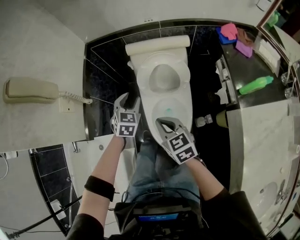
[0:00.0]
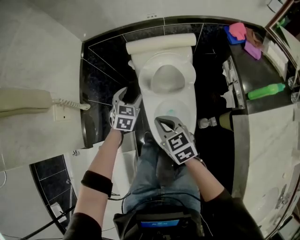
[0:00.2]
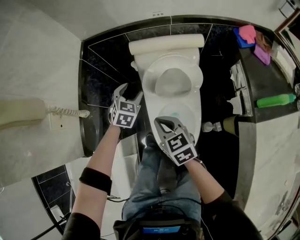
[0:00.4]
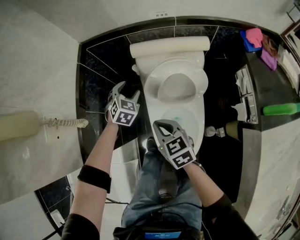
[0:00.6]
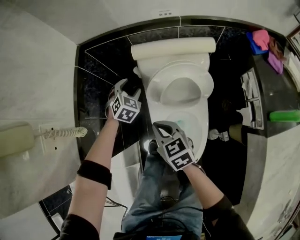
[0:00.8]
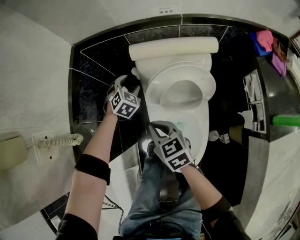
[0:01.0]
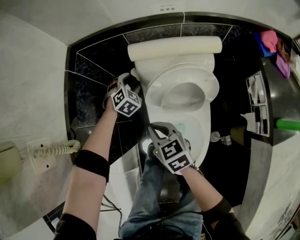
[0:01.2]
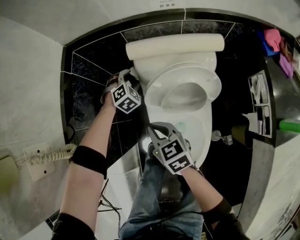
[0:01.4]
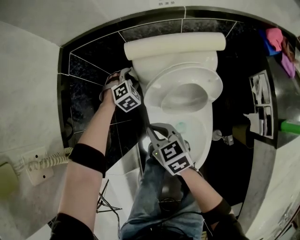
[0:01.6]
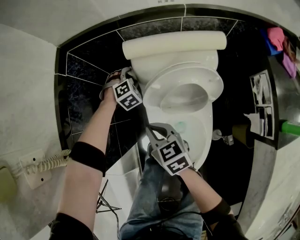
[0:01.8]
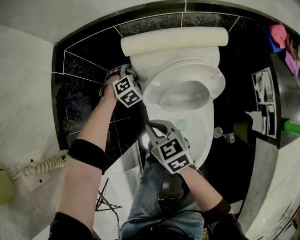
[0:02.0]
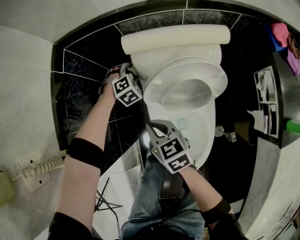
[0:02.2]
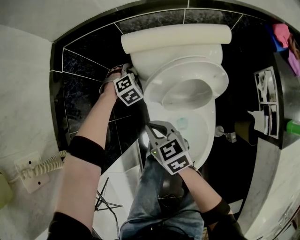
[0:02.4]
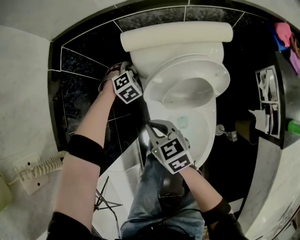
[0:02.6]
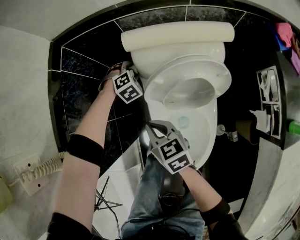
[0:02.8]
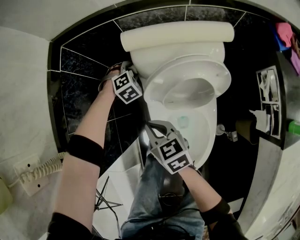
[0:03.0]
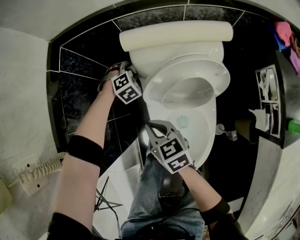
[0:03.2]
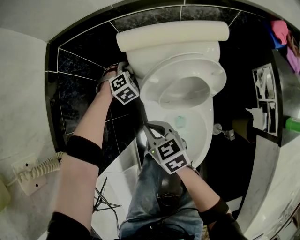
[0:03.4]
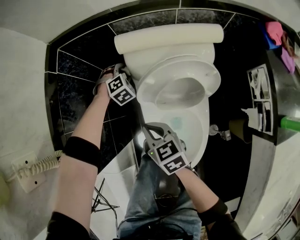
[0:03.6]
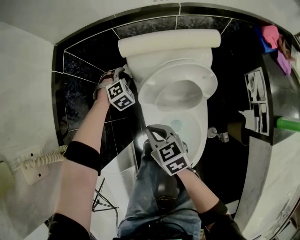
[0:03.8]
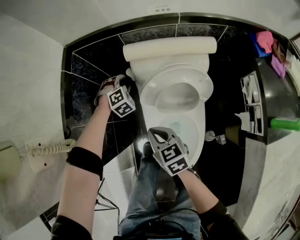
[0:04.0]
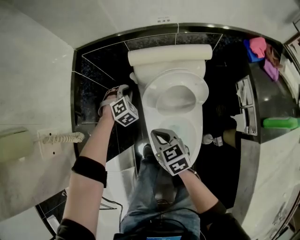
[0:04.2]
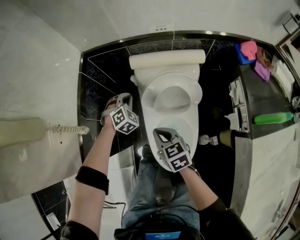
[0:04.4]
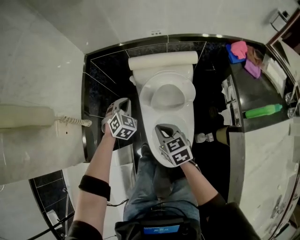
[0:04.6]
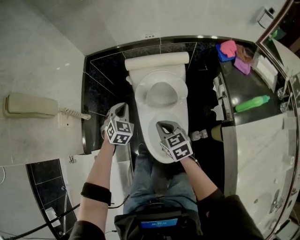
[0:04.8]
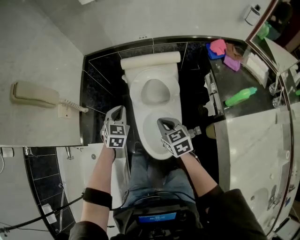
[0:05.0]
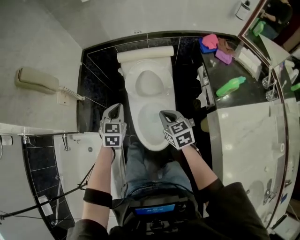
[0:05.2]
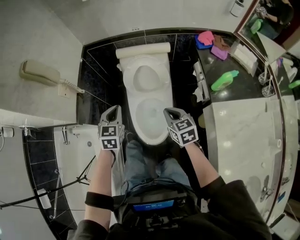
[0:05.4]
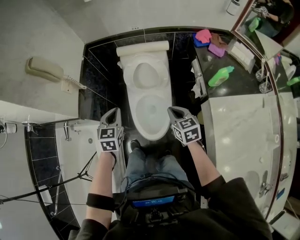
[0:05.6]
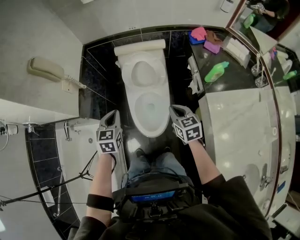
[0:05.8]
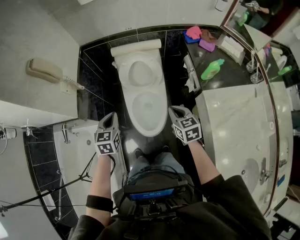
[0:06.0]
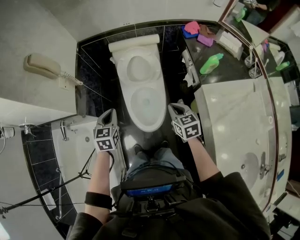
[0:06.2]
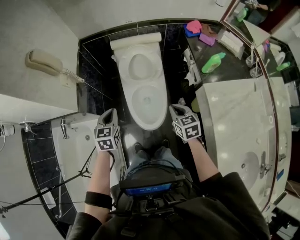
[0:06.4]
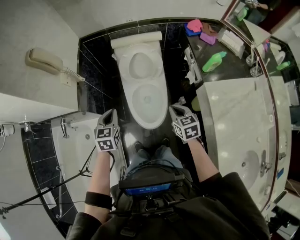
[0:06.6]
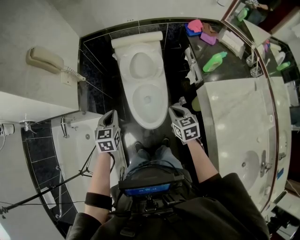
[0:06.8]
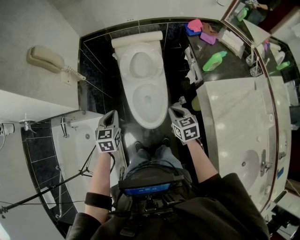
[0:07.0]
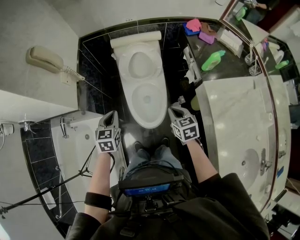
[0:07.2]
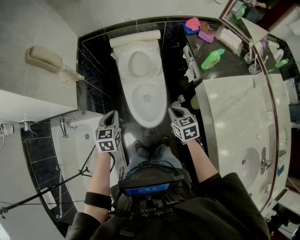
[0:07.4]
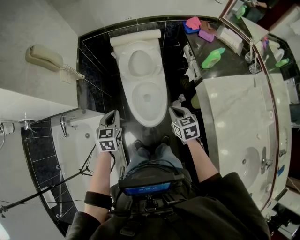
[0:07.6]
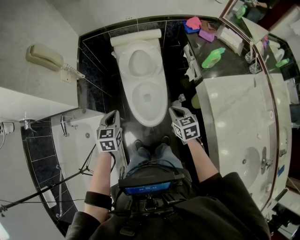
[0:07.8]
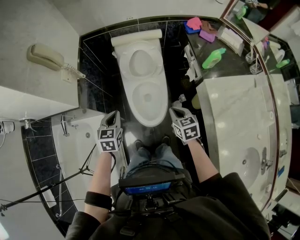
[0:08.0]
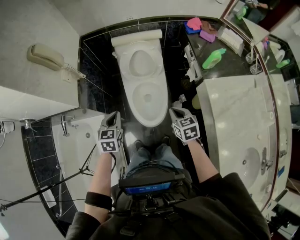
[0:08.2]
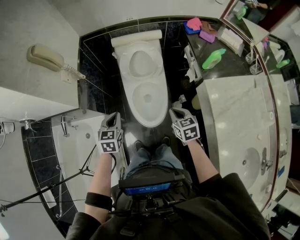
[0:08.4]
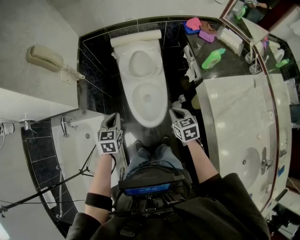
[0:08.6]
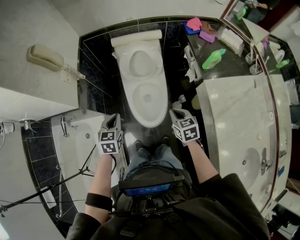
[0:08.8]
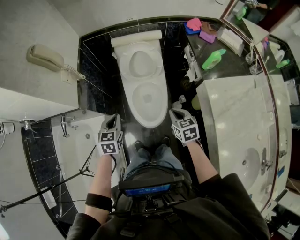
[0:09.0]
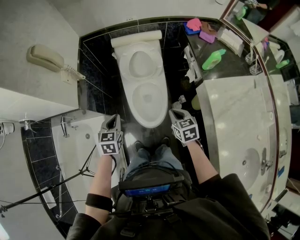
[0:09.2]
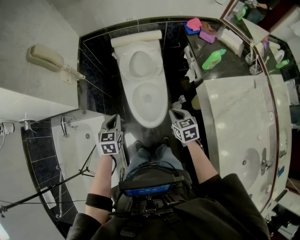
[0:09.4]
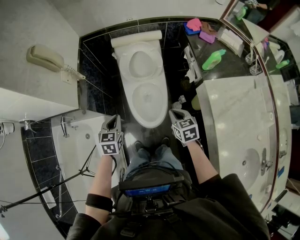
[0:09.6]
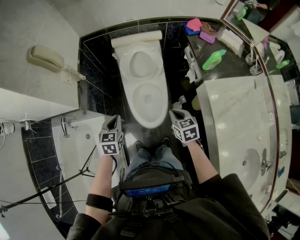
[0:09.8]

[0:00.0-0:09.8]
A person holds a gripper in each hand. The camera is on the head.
0:00.0 to 0:01.4: Both grippers travel together forward and downward, approximately 30 cm. The left gripper turns by approximately 40 degrees.
0:01.4 to 0:02.8: The left gripper moves downward, approximately 5 cm.
0:02.8 to 0:04.2: Both grippers move upward and backward, approximately 10 cm. The left gripper closes.
0:04.2 to 0:05.6: The left gripper heads backward and upward, covering some 50 cm, and twists some 60 degrees counterclockwise, seen from behind. Meanwhile the right gripper goes some 35 cm backward, upward and to the right.
0:05.6 to 0:07.0: The right gripper is displaced backward by some 10 cm. Meanwhile the left gripper moves backward and to the left, about 10 cm.
0:07.0 to 0:08.4: The grippers move only a little.
0:08.4 to 0:09.8: Both grippers stay put.

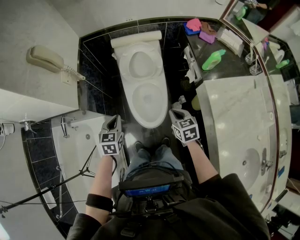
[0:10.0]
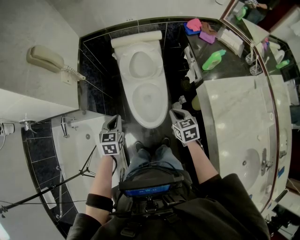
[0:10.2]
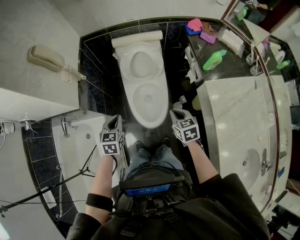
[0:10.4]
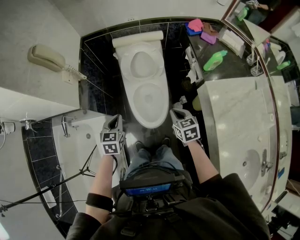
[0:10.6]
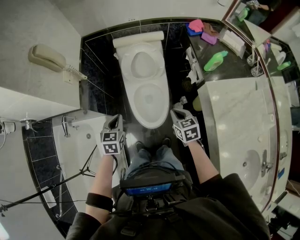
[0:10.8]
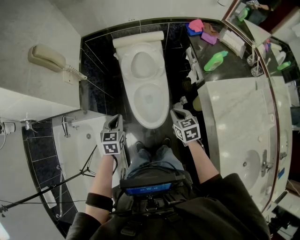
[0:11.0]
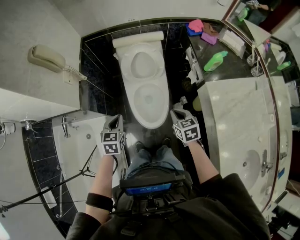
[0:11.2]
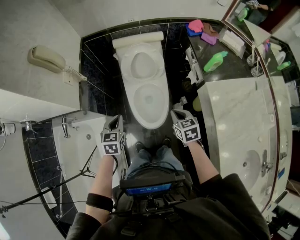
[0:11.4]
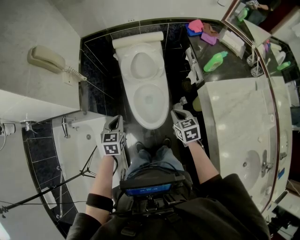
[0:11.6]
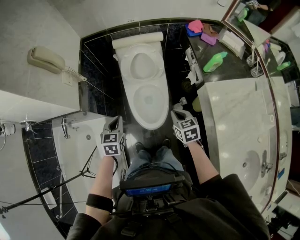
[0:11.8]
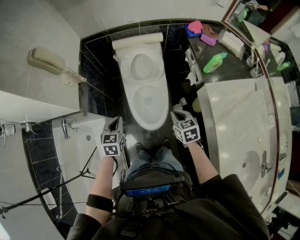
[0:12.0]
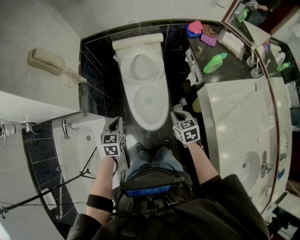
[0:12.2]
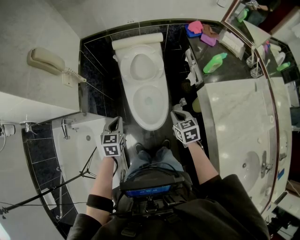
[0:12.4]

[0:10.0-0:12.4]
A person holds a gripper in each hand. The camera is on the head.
0:10.0 to 0:12.4: The two grippers keep their place.

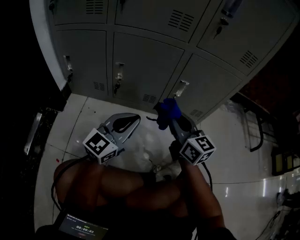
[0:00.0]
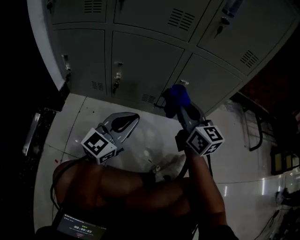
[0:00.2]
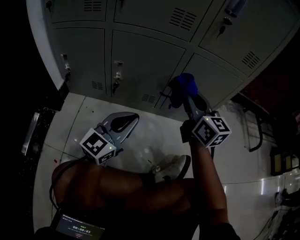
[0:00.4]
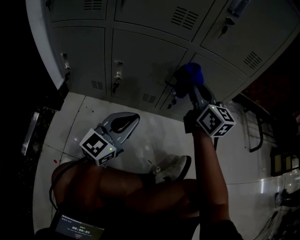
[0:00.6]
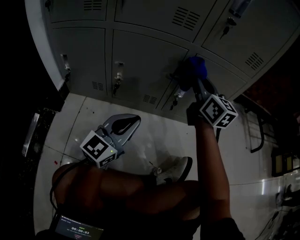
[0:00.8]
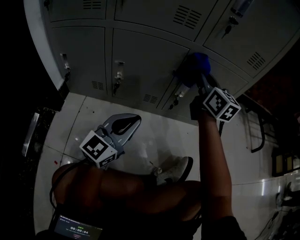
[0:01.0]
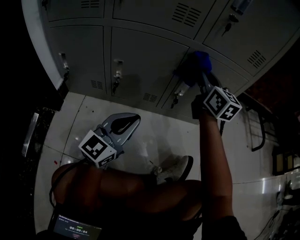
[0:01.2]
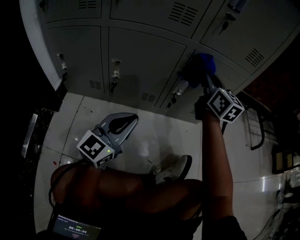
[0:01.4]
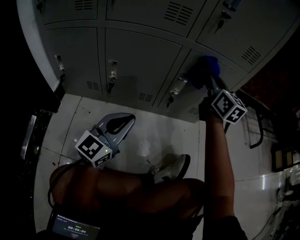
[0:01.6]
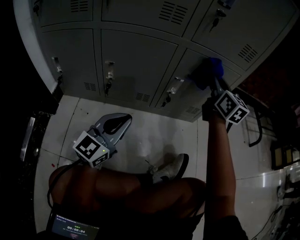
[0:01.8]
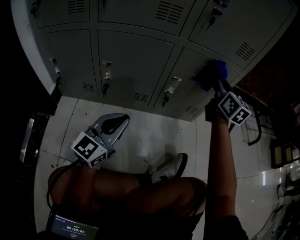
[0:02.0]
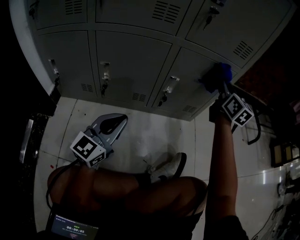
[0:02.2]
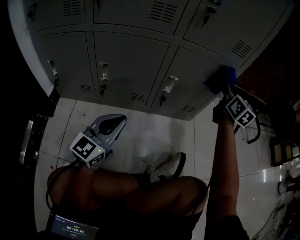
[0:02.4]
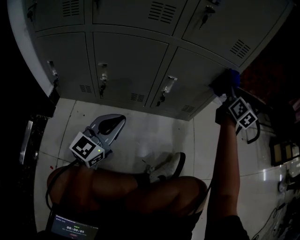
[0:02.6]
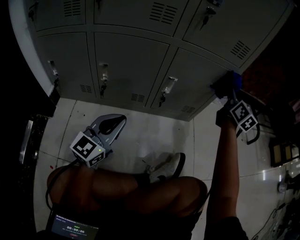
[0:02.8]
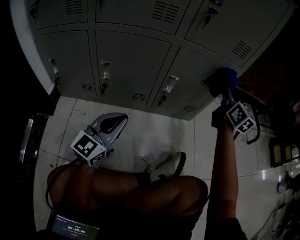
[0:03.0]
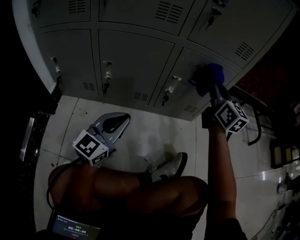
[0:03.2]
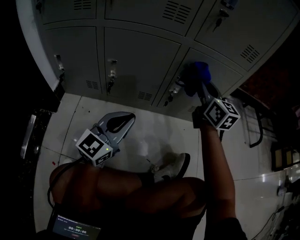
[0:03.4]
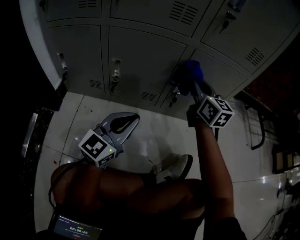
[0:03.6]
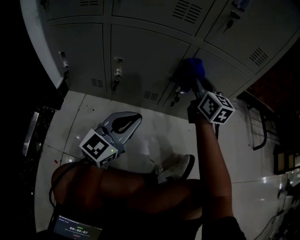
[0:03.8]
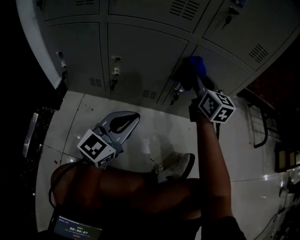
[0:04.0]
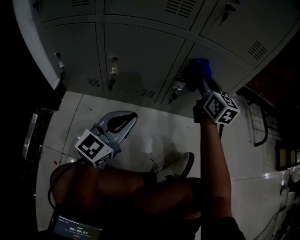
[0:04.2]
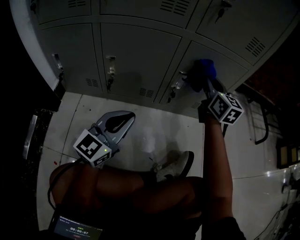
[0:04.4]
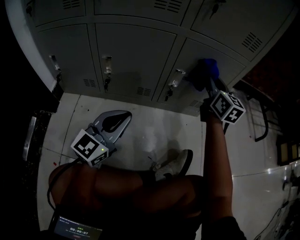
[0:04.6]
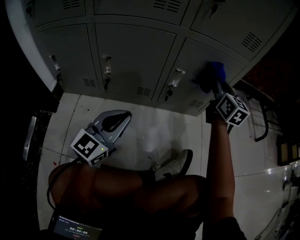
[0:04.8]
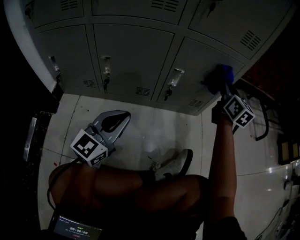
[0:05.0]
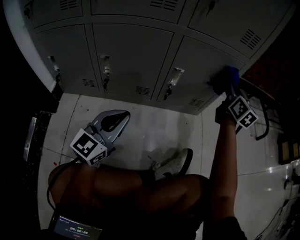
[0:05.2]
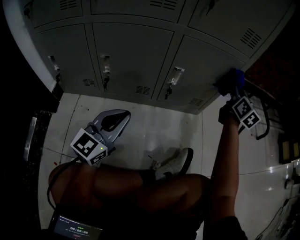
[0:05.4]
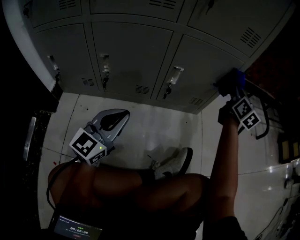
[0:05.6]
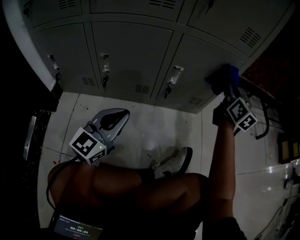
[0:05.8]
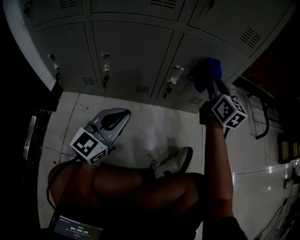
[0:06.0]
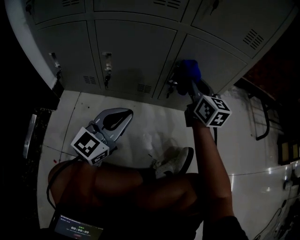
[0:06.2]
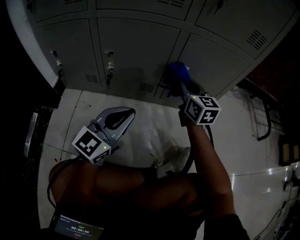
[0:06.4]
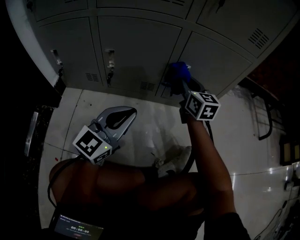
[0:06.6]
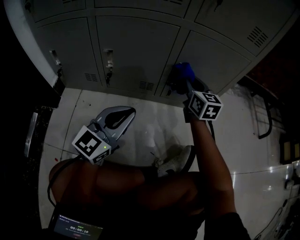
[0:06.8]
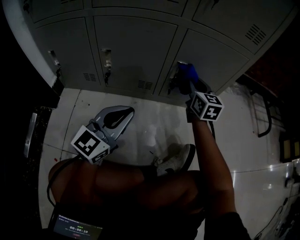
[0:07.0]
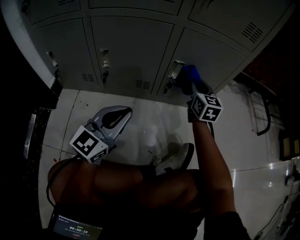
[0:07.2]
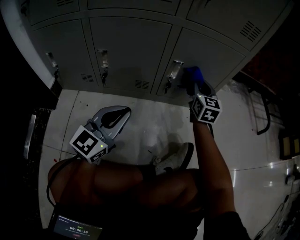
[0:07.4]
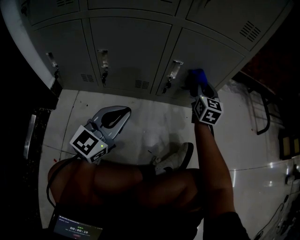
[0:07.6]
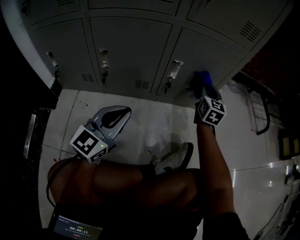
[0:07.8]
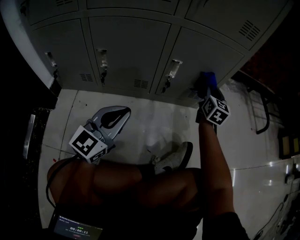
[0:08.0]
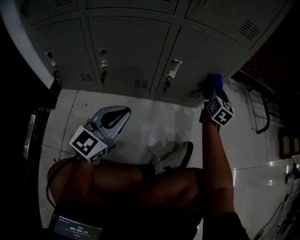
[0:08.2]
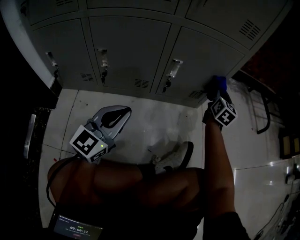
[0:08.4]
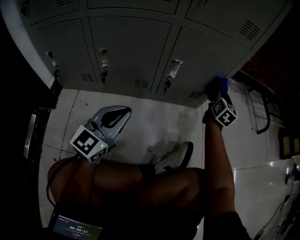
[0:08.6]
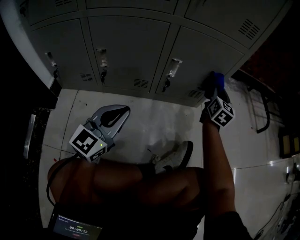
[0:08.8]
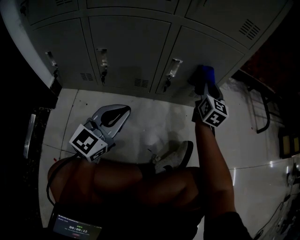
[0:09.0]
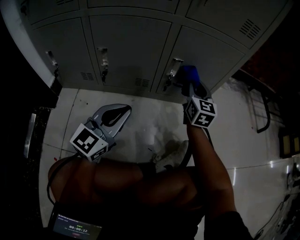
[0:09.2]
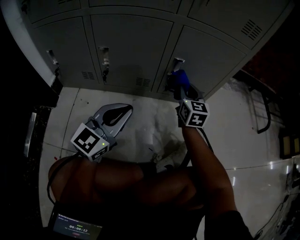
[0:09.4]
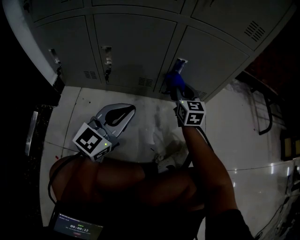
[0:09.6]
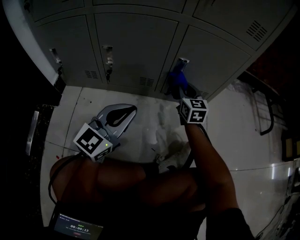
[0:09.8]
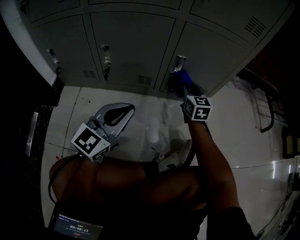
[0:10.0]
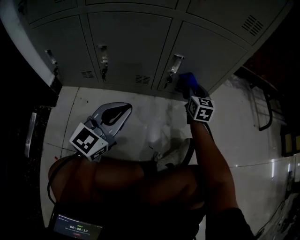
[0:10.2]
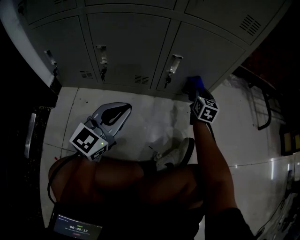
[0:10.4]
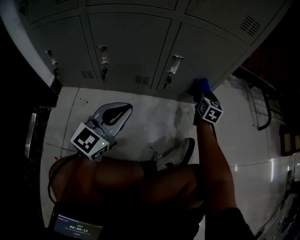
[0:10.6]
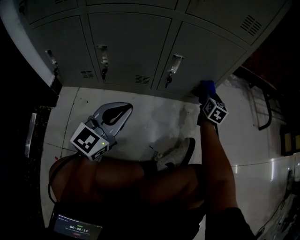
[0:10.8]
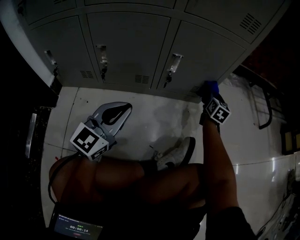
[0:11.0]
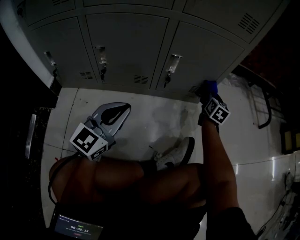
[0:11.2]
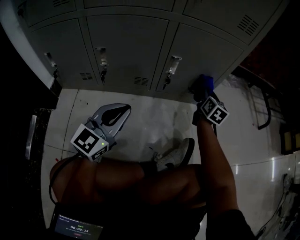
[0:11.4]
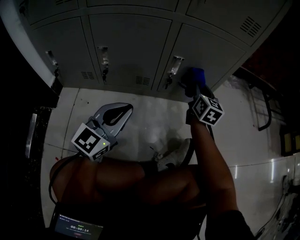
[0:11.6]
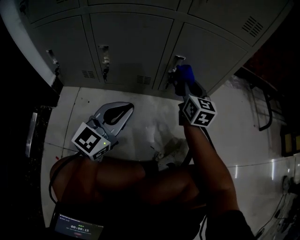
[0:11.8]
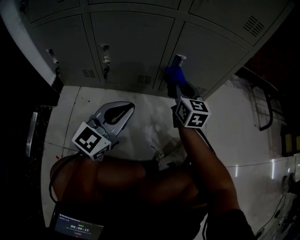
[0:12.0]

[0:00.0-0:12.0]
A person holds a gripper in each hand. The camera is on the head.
0:00.0 to 0:01.6: The right gripper moves forward, upward and to the right, roughly 20 cm, and rotates some 20 degrees.
0:01.6 to 0:03.0: The right gripper is displaced to the right by some 15 cm.
0:03.0 to 0:04.4: The right gripper goes approximately 15 cm to the left and downward.
0:04.4 to 0:06.0: The right gripper moves approximately 15 cm to the right and comes back.
0:06.0 to 0:07.6: The right gripper moves downward, approximately 10 cm, reaches roughly 10 cm to the left, then returns, and rotates some 20 degrees.
0:07.6 to 0:09.0: The right gripper travels to the right and back again, roughly 10 cm each way.
0:09.0 to 0:10.4: The right gripper is displaced downward by roughly 10 cm, and travels to the left and back again, some 10 cm each way.
0:10.4 to 0:12.0: The right gripper goes some 15 cm to the left, backward and upward.
